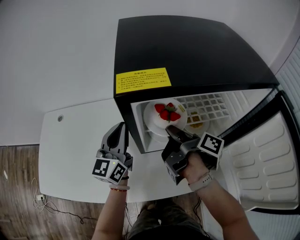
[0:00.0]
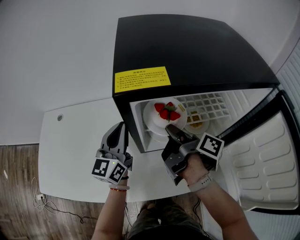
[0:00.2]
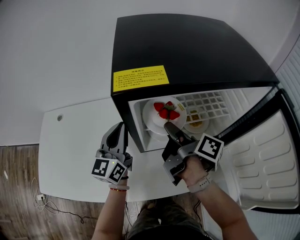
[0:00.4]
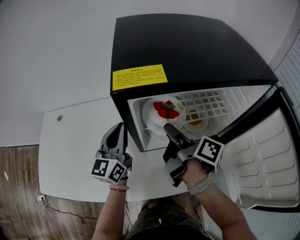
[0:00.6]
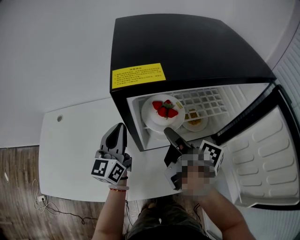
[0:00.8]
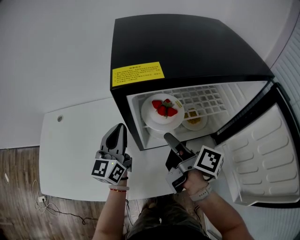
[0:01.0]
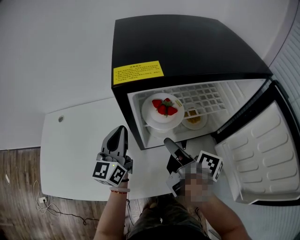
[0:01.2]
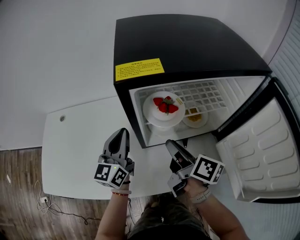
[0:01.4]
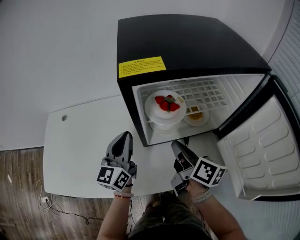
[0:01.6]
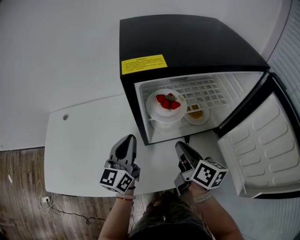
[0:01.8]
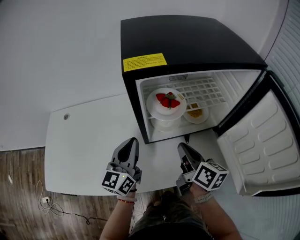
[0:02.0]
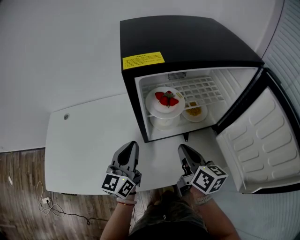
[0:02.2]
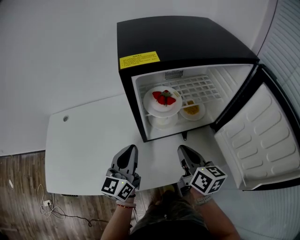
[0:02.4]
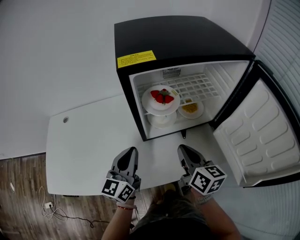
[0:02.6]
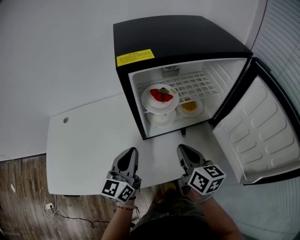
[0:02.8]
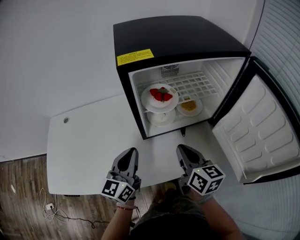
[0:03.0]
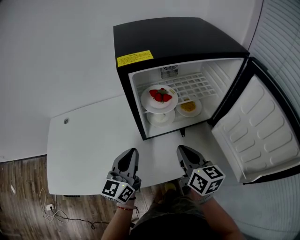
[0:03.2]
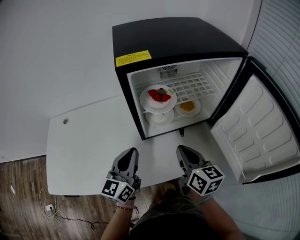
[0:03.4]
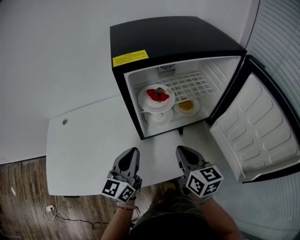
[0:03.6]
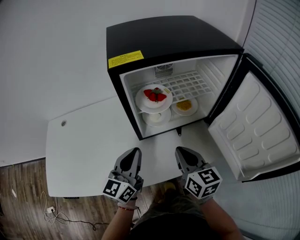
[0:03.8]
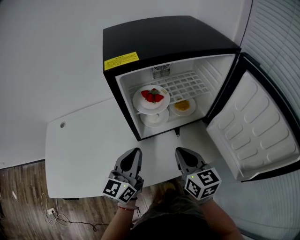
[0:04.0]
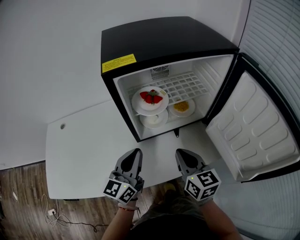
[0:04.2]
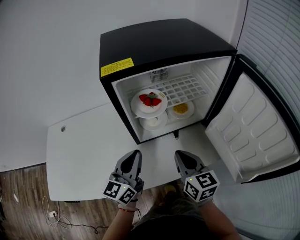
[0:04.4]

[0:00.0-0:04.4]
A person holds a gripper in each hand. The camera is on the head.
0.0 to 1.4 s: The right gripper moves backward, about 10 cm, swivels about 30 degrees, and opens.
1.4 to 3.0 s: Both grippers travel together backward, approximately 10 cm. The right gripper rotates roughly 30 degrees, and closes.
3.0 to 4.4 s: The grippers make only small movements.

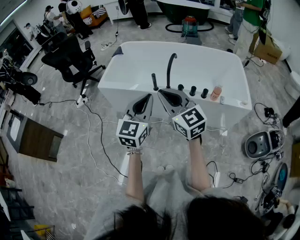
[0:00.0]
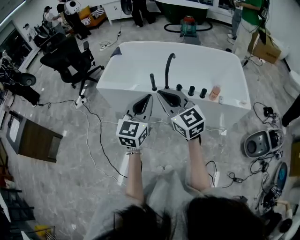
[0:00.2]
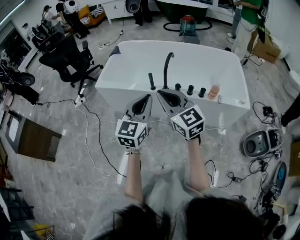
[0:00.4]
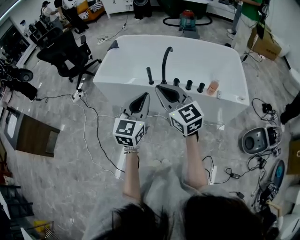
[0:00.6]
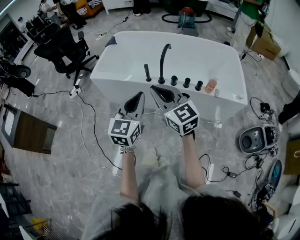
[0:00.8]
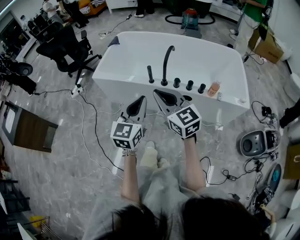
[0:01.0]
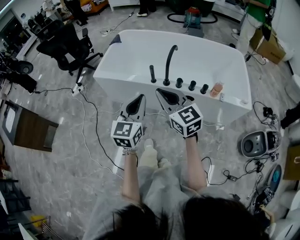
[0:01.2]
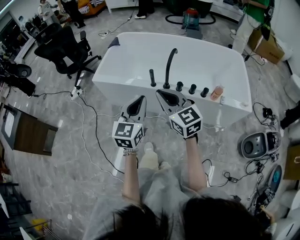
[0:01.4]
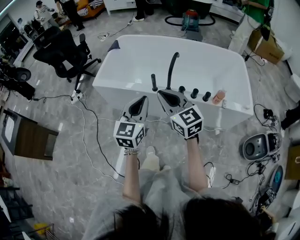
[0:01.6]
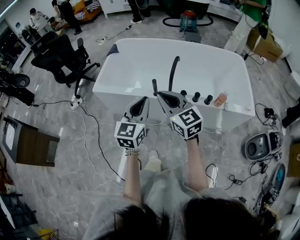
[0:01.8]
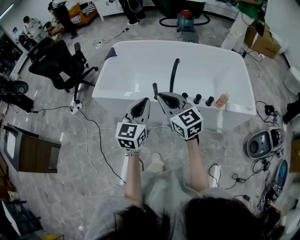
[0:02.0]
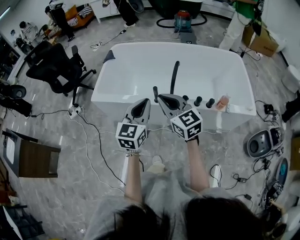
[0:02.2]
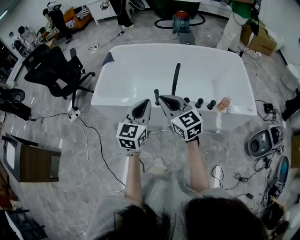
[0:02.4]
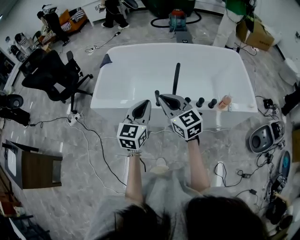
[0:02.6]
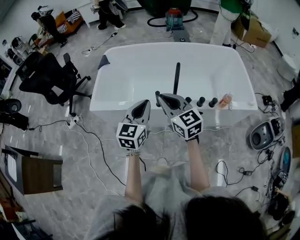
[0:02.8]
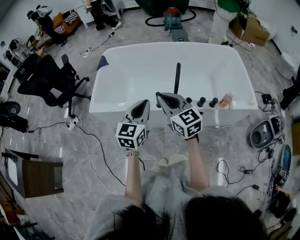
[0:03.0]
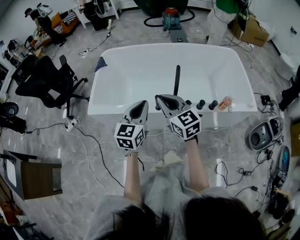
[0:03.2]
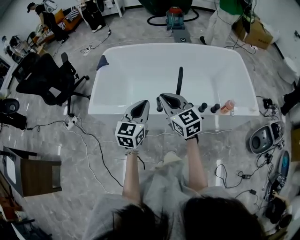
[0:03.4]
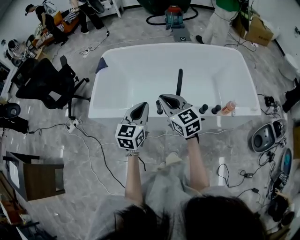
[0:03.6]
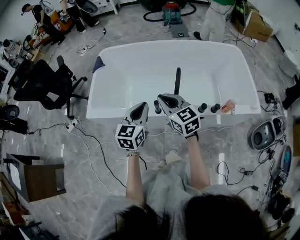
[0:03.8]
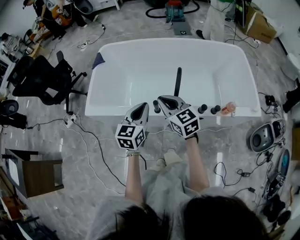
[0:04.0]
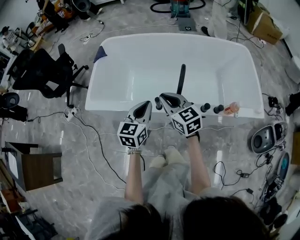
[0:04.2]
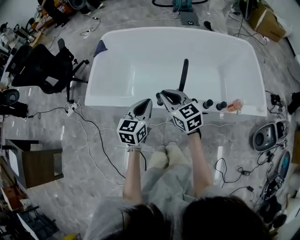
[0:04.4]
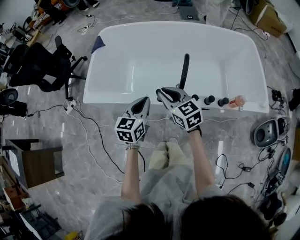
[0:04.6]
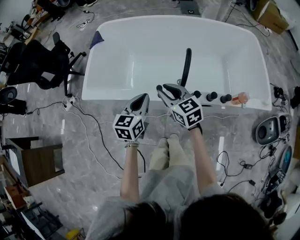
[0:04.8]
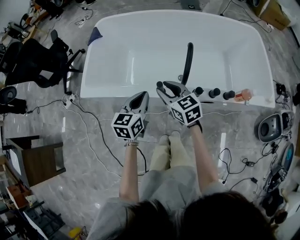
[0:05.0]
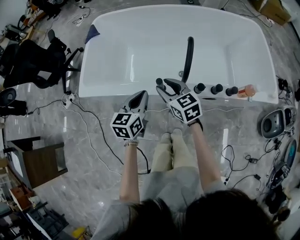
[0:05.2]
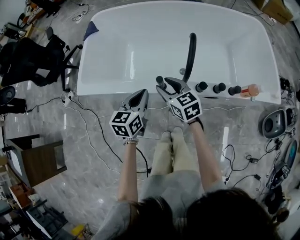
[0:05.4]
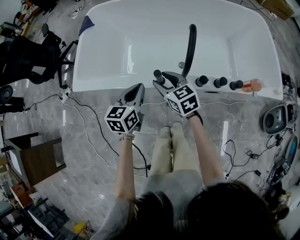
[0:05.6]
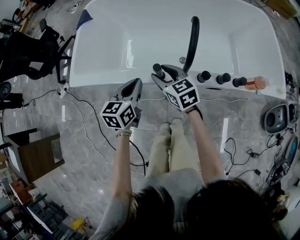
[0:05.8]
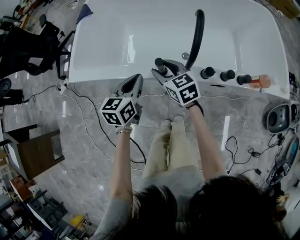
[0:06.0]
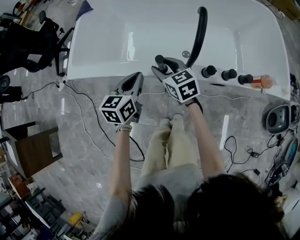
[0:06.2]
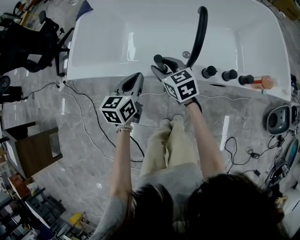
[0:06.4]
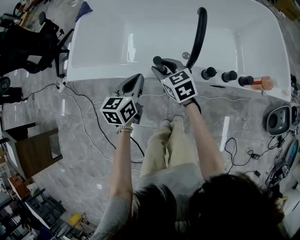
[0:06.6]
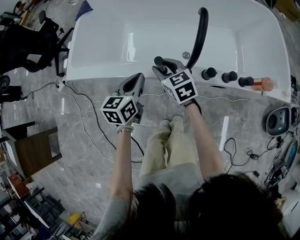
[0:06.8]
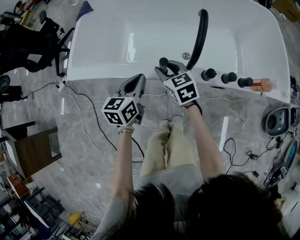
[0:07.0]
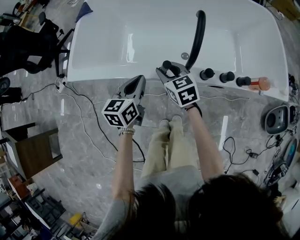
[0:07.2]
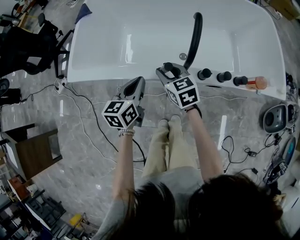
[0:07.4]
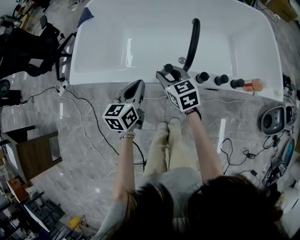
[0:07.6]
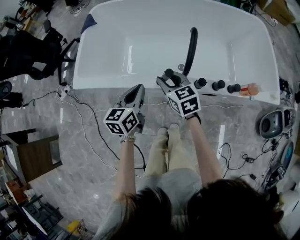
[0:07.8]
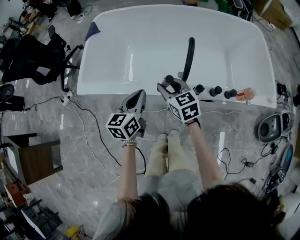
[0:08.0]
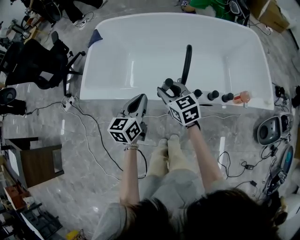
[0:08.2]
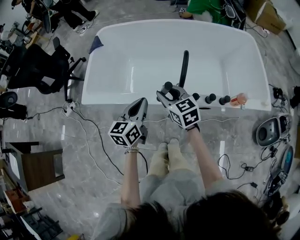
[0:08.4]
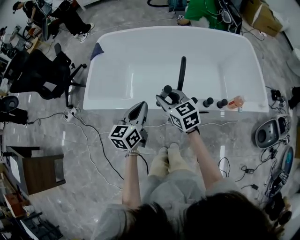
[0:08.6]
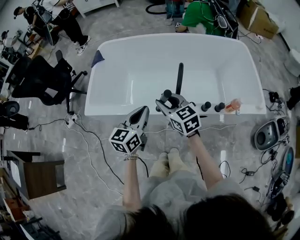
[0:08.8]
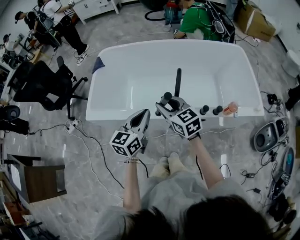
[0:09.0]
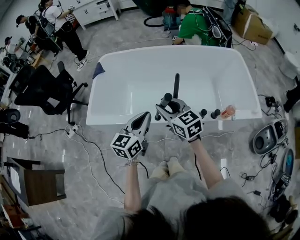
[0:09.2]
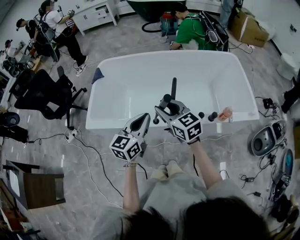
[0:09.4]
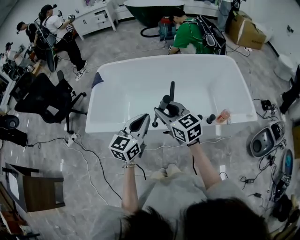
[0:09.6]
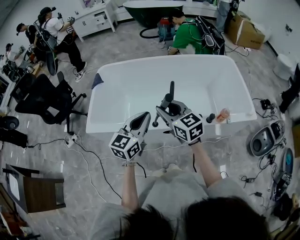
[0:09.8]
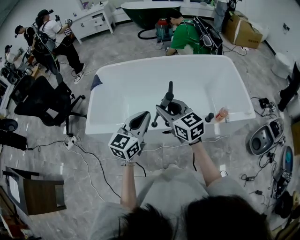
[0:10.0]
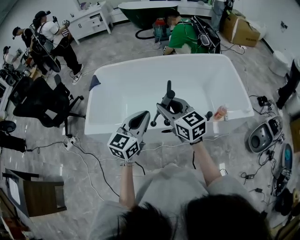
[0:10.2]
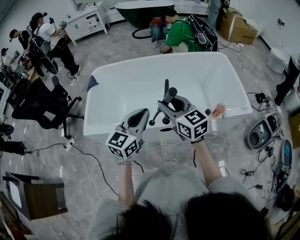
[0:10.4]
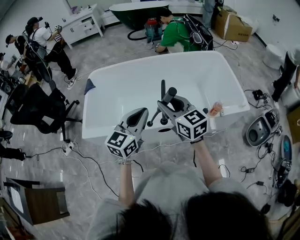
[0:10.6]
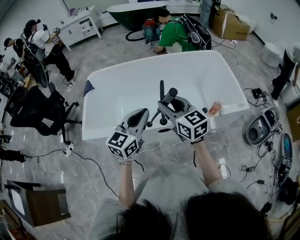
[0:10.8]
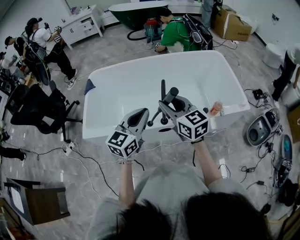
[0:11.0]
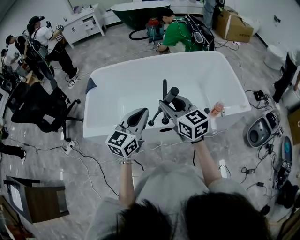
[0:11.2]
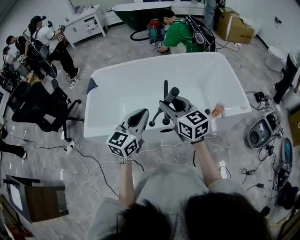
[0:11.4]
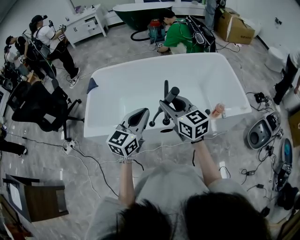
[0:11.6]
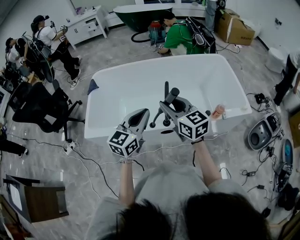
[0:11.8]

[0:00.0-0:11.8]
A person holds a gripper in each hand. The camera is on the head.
0.0 to 1.4 s: The left gripper shifts approximately 5 cm downward and forward. Meanwhile the right gripper moves forward and downward, about 10 cm.
1.4 to 3.0 s: The two grippers go approximately 20 cm forward.
3.0 to 4.4 s: Both grippers travel together downward and forward, roughly 15 cm.
4.4 to 6.0 s: Both grippers move downward, approximately 20 cm. The right gripper opens its fingers.
6.0 to 7.4 s: The grippers stay close to where they were, moving slightly.
7.4 to 8.8 s: Both grippers travel together upward, some 20 cm.
8.8 to 10.4 s: The grippers both shift upward by some 15 cm. The left gripper changes its angle by approximately 20 degrees.
10.4 to 11.8 s: The grippers move only a little.

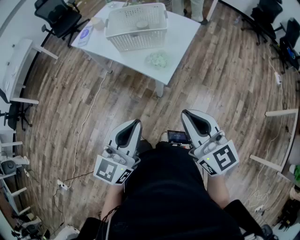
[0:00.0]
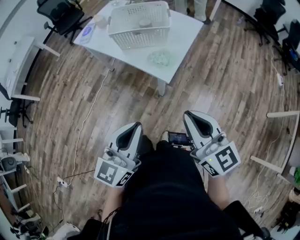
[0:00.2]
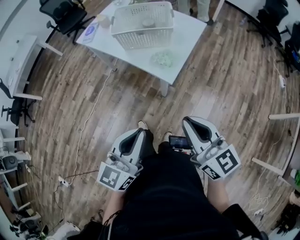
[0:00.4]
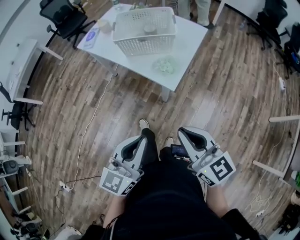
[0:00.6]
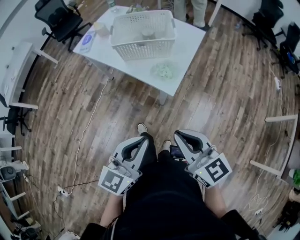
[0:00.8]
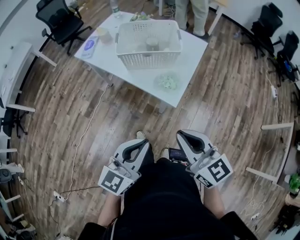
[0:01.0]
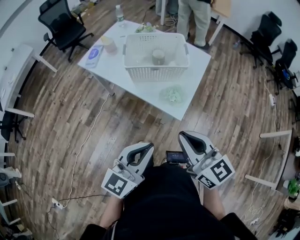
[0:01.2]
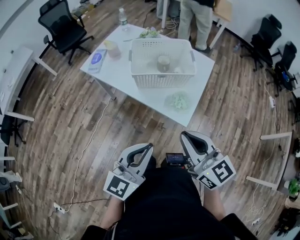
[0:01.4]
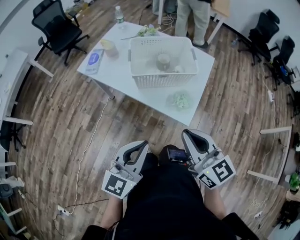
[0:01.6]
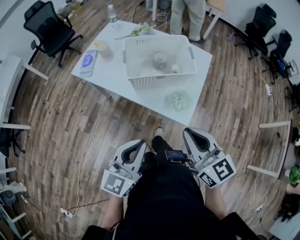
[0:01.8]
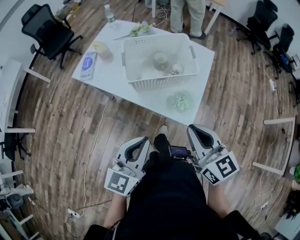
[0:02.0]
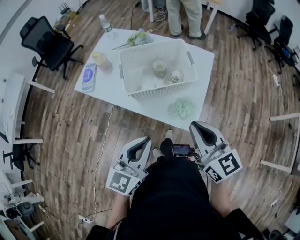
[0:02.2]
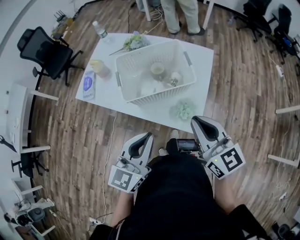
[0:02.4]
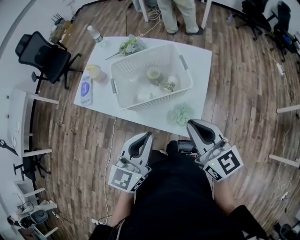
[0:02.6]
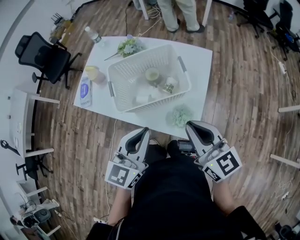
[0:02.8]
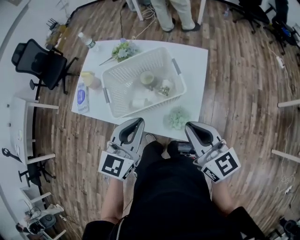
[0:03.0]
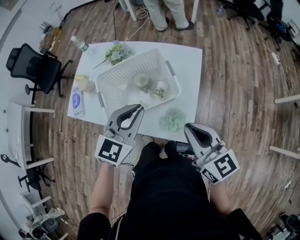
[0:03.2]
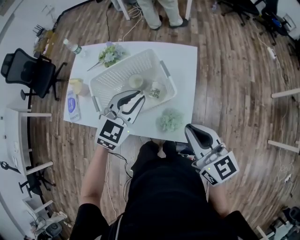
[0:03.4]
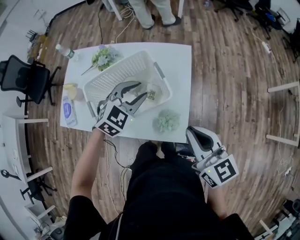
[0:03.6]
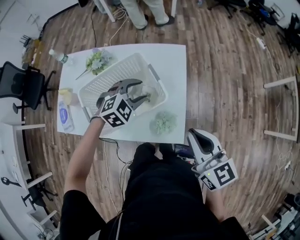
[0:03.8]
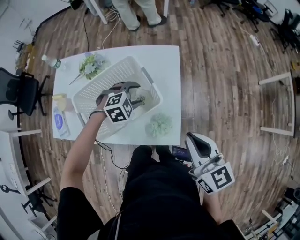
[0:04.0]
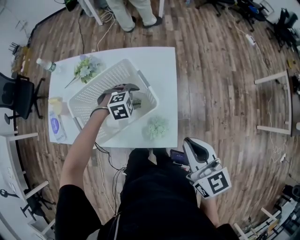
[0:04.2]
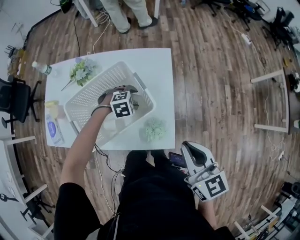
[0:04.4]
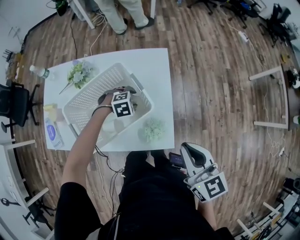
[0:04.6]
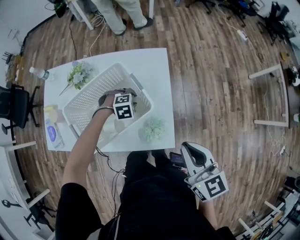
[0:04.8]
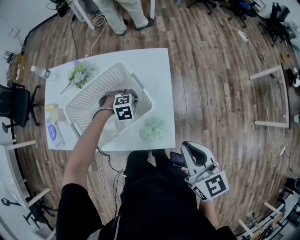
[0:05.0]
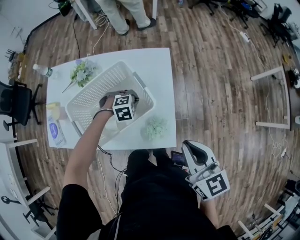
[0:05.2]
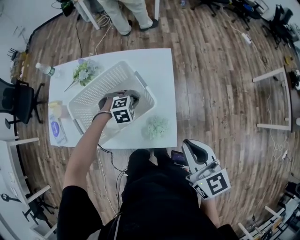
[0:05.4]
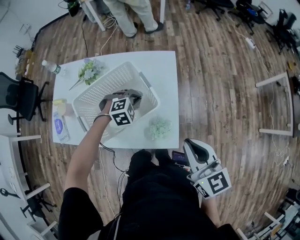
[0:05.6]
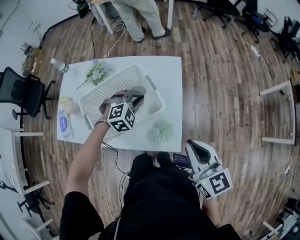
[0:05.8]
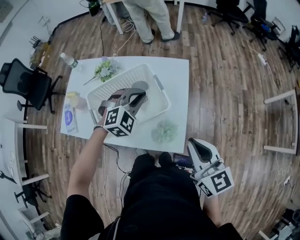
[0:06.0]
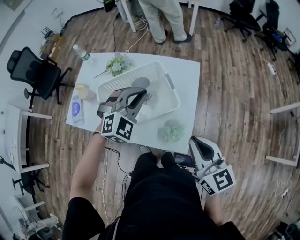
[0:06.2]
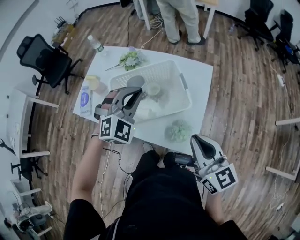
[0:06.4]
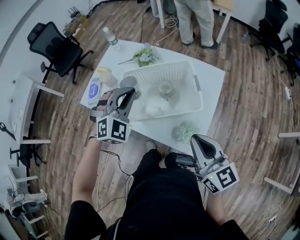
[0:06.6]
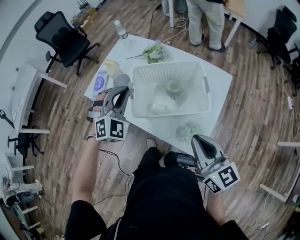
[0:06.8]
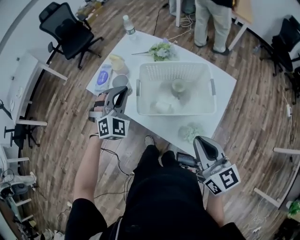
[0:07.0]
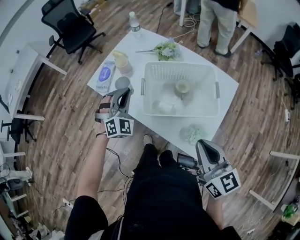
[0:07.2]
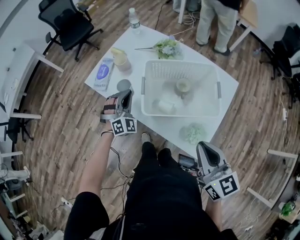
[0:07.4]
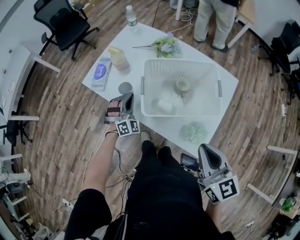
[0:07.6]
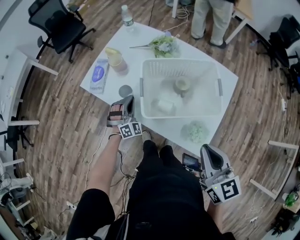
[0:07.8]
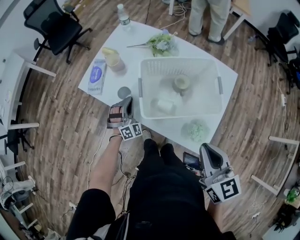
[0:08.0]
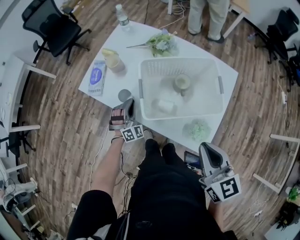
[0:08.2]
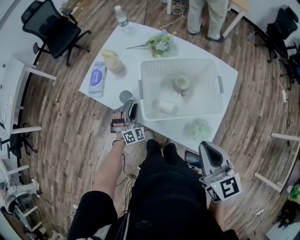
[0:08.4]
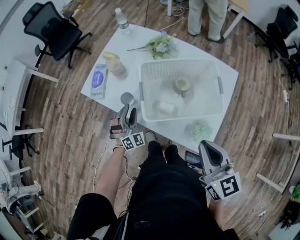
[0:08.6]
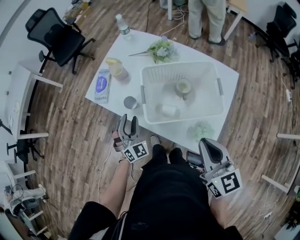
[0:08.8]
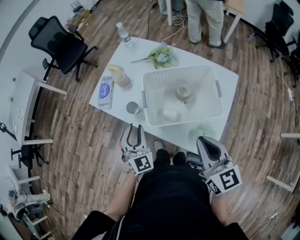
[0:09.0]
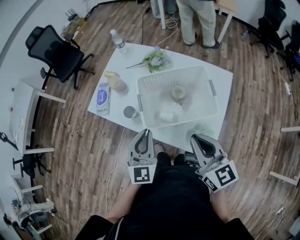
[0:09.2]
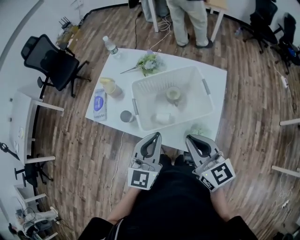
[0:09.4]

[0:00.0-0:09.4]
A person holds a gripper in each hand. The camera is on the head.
0.0 to 1.6 s: Both grippers move forward and to the left, roughly 20 cm.
1.6 to 3.2 s: The left gripper travels forward by approximately 30 cm, and rotates approximately 30 degrees; the right gripper goes approximately 20 cm forward and to the right.
3.2 to 4.8 s: The right gripper changes place by about 5 cm, and turns by approximately 20 degrees. The left gripper heads downward, covering some 30 cm, and tilts its fingers about 50 degrees downward.
4.8 to 6.2 s: The left gripper is displaced upward by approximately 25 cm, and tilts its fingers approximately 40 degrees upward.
6.2 to 7.8 s: The right gripper moves roughly 15 cm, while the left gripper moves approximately 35 cm, and swivels roughly 50 degrees.
7.8 to 9.4 s: The right gripper shifts by some 5 cm. Meanwhile the left gripper heads upward, backward and to the right, covering roughly 30 cm, rolls counterclockwise, seen from behind, by some 60 degrees, and opens and closes again.
